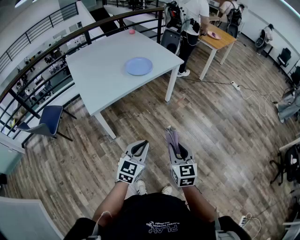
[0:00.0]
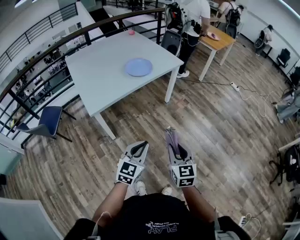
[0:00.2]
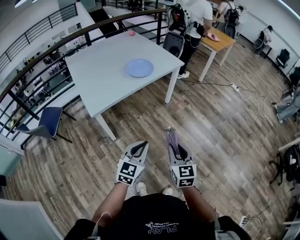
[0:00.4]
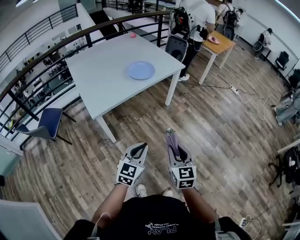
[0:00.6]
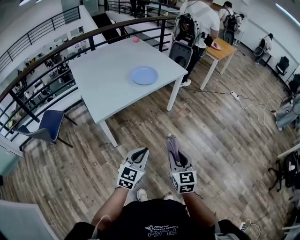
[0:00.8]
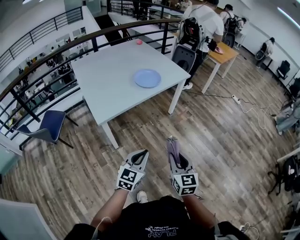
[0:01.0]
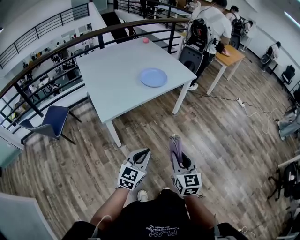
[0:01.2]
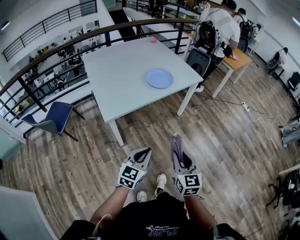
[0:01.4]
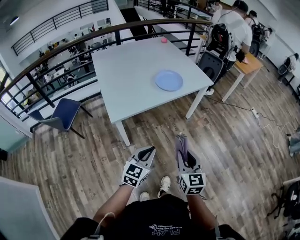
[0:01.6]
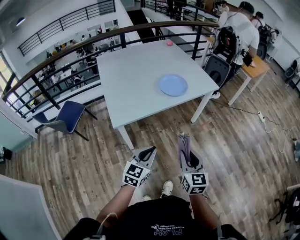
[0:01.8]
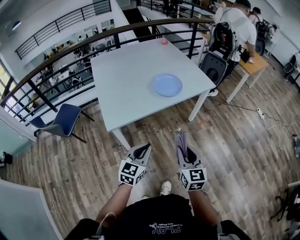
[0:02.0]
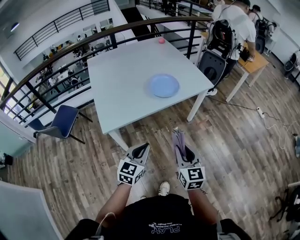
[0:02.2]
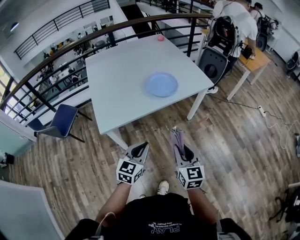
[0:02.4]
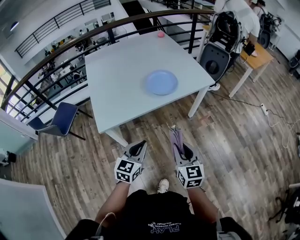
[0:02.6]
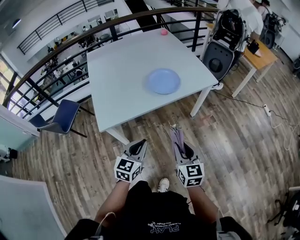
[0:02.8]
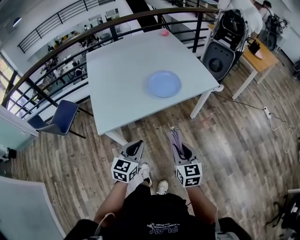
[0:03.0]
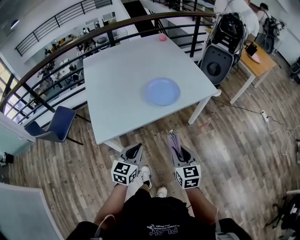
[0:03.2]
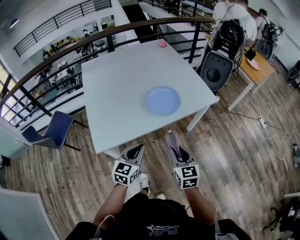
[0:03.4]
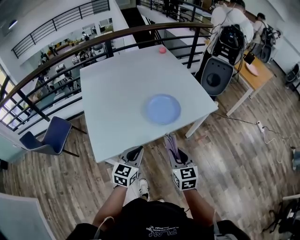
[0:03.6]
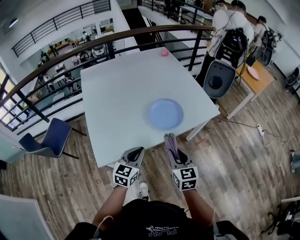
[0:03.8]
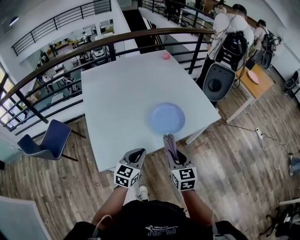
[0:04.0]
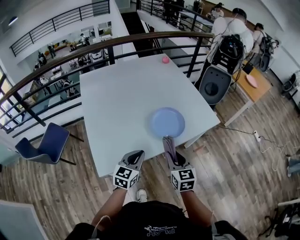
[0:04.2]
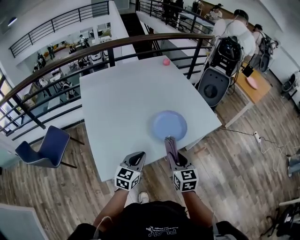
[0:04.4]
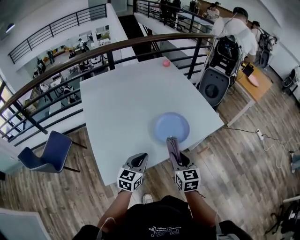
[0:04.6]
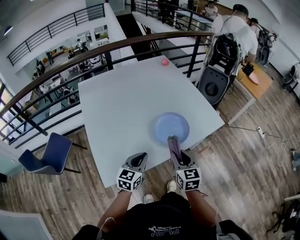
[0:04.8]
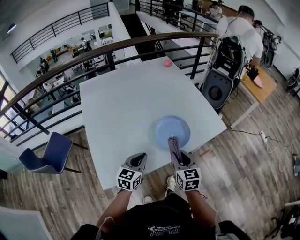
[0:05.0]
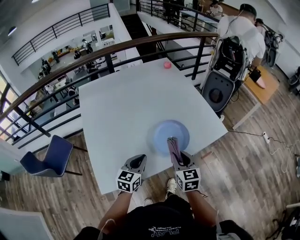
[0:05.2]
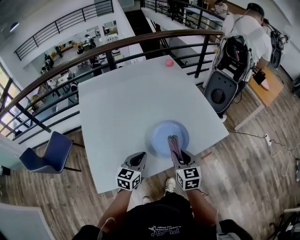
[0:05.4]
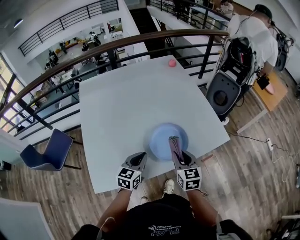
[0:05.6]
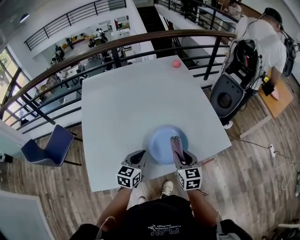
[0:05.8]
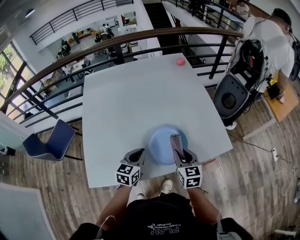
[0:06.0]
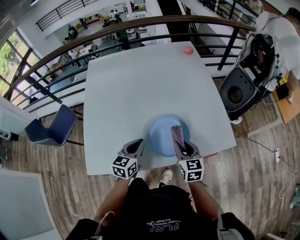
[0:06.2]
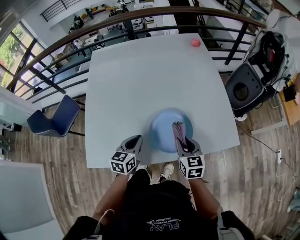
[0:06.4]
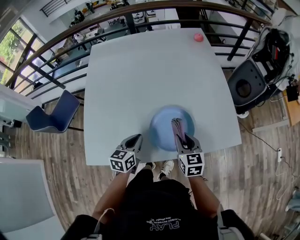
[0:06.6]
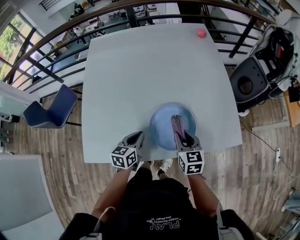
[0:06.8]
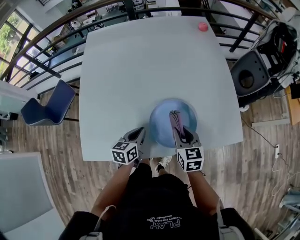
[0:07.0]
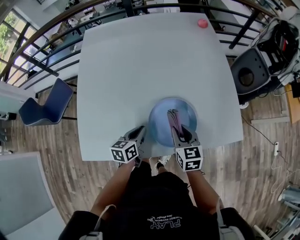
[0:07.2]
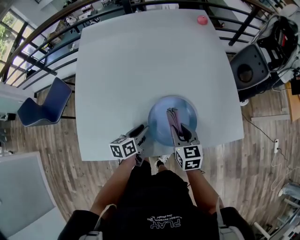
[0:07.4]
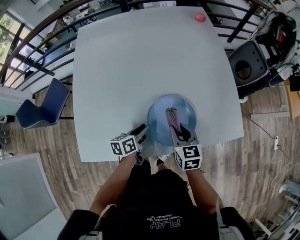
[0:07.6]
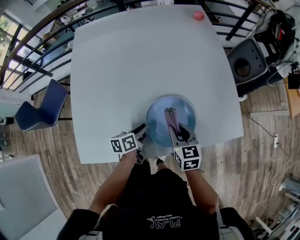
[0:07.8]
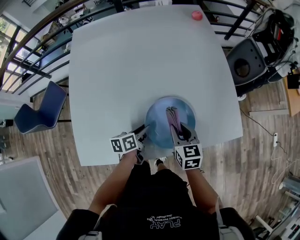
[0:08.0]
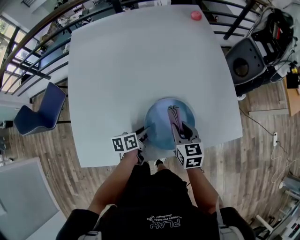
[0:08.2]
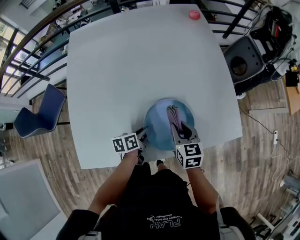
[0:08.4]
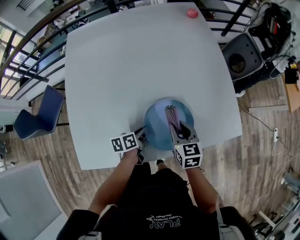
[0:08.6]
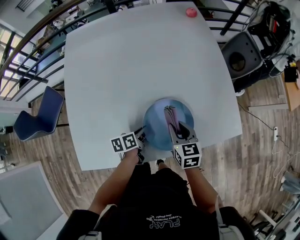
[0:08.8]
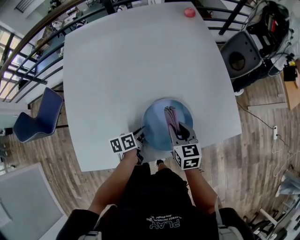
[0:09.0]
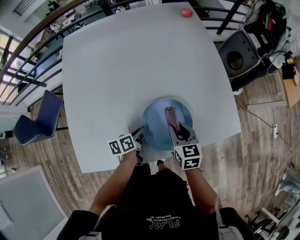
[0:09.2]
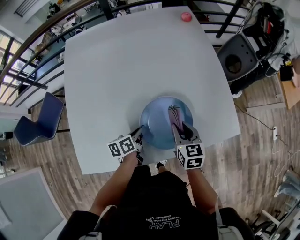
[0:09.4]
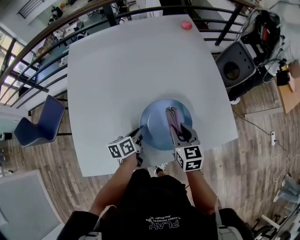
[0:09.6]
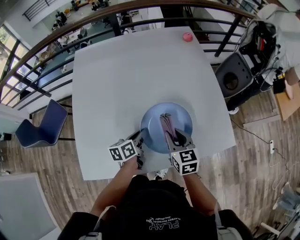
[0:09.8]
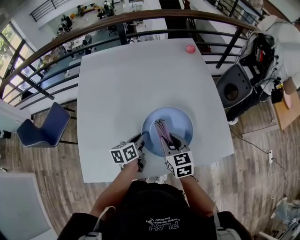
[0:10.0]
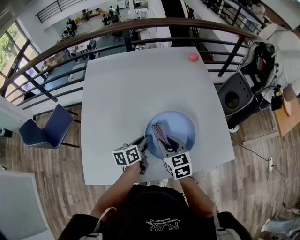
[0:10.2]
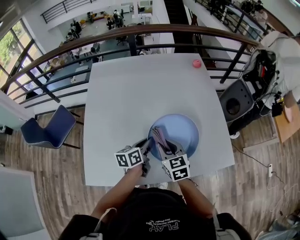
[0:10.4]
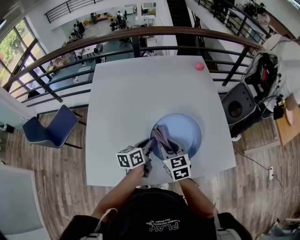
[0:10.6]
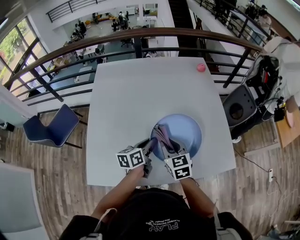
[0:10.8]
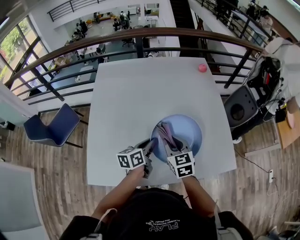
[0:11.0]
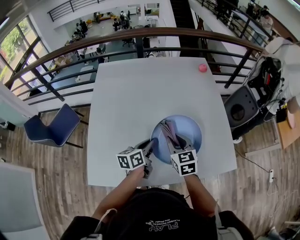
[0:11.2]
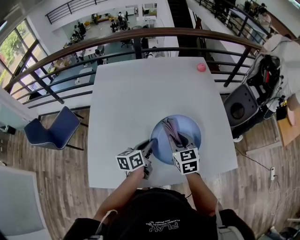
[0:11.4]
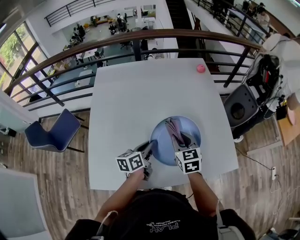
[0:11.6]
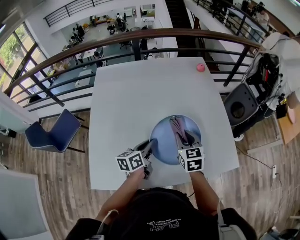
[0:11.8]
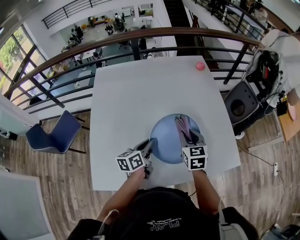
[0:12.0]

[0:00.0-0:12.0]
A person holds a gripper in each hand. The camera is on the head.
0:00.0 to 0:01.6: Both grippers travel together to the left and forward, some 15 cm.
0:01.6 to 0:03.0: Both grippers travel together forward, roughly 15 cm.
0:03.0 to 0:04.4: The two grippers go approximately 25 cm forward and to the left.
0:04.4 to 0:06.0: The left gripper shifts approximately 15 cm forward. Meanwhile the right gripper shifts some 20 cm forward and to the right.
0:06.0 to 0:07.6: The left gripper goes roughly 15 cm downward, turns by approximately 40 degrees, and opens up; the right gripper shifts approximately 5 cm downward.
0:07.6 to 0:09.0: The left gripper closes.
0:09.0 to 0:10.4: The left gripper moves upward, about 15 cm, and turns by about 30 degrees, while the right gripper goes some 15 cm to the left and upward.
0:10.4 to 0:12.0: The right gripper is displaced forward and to the right by roughly 10 cm.

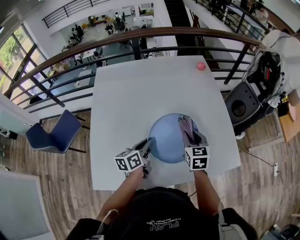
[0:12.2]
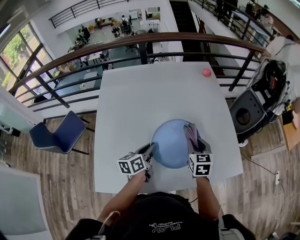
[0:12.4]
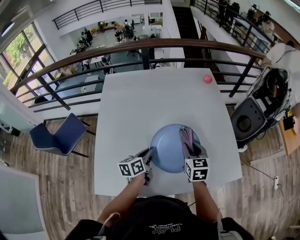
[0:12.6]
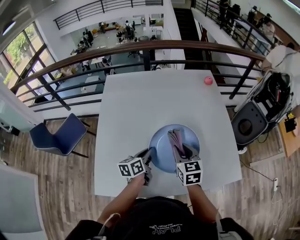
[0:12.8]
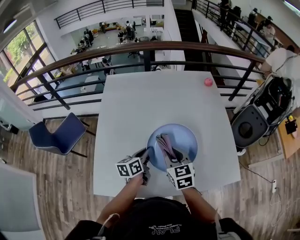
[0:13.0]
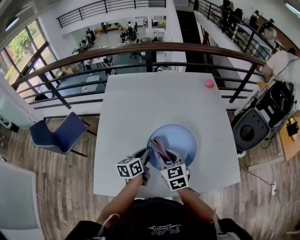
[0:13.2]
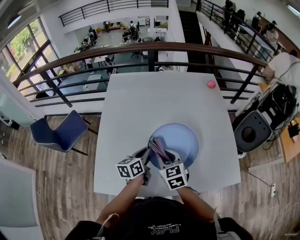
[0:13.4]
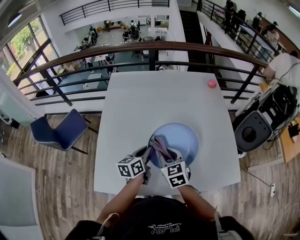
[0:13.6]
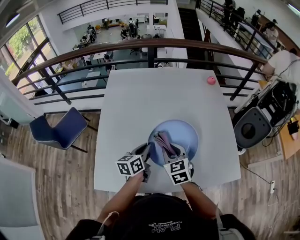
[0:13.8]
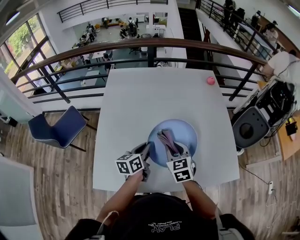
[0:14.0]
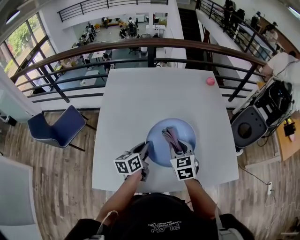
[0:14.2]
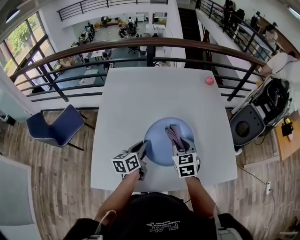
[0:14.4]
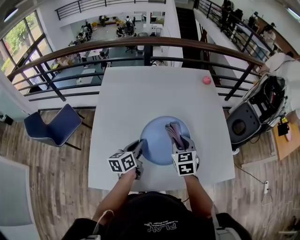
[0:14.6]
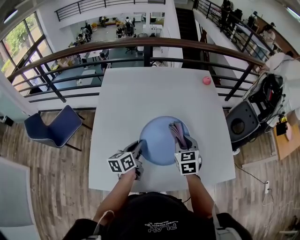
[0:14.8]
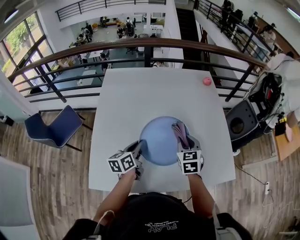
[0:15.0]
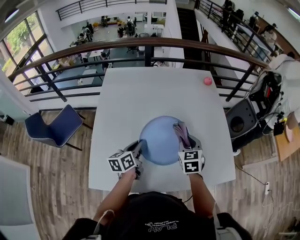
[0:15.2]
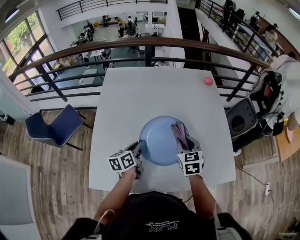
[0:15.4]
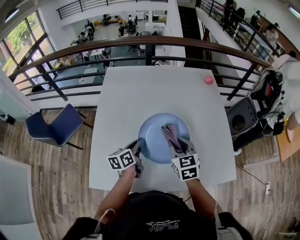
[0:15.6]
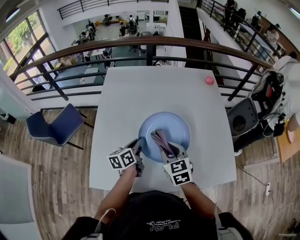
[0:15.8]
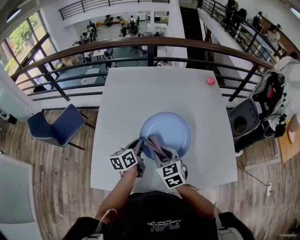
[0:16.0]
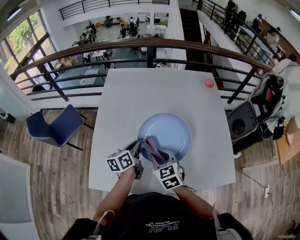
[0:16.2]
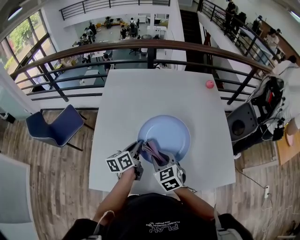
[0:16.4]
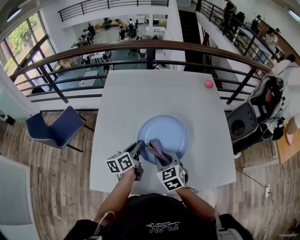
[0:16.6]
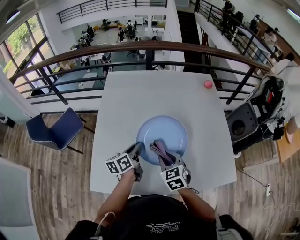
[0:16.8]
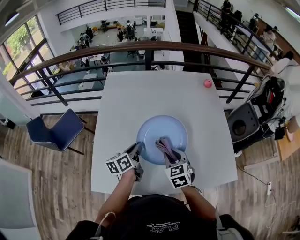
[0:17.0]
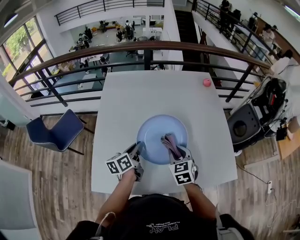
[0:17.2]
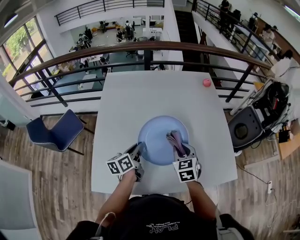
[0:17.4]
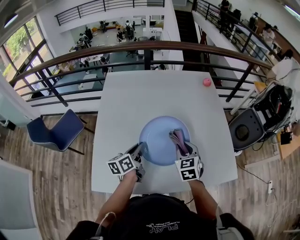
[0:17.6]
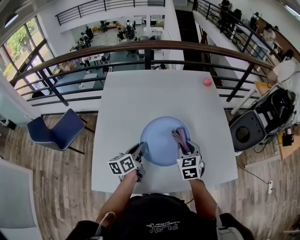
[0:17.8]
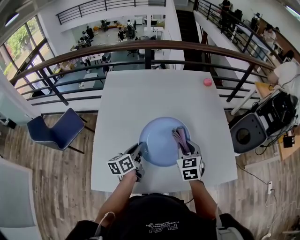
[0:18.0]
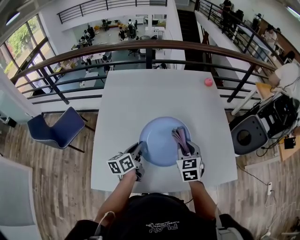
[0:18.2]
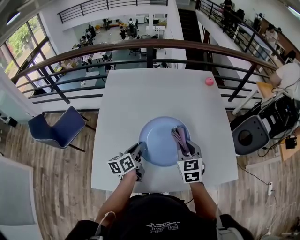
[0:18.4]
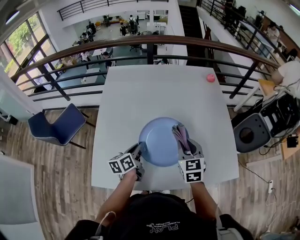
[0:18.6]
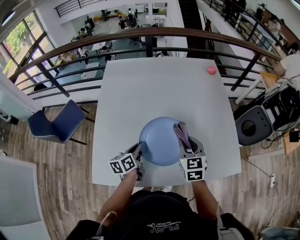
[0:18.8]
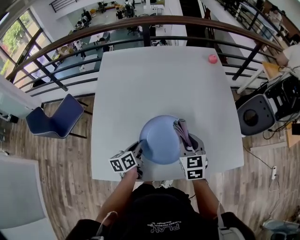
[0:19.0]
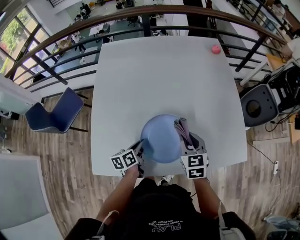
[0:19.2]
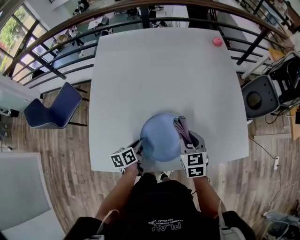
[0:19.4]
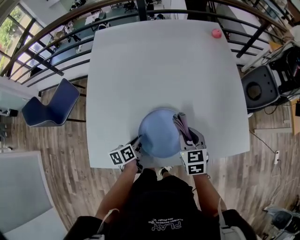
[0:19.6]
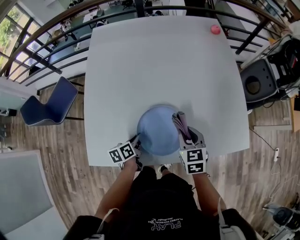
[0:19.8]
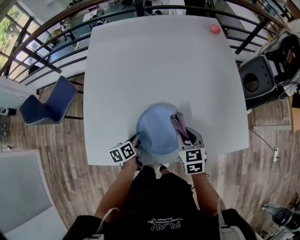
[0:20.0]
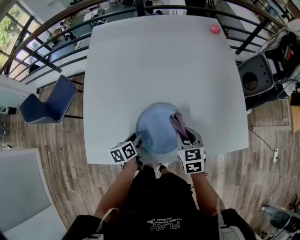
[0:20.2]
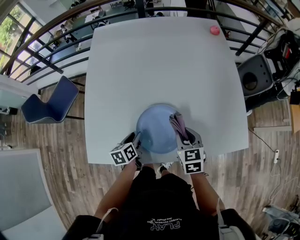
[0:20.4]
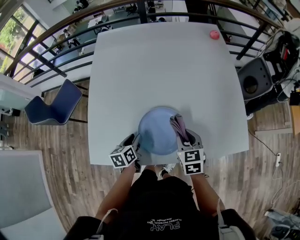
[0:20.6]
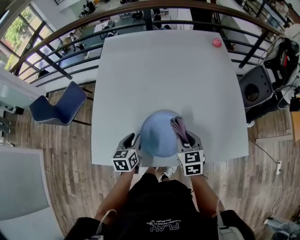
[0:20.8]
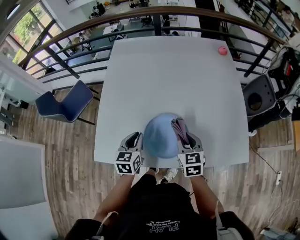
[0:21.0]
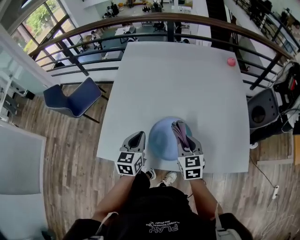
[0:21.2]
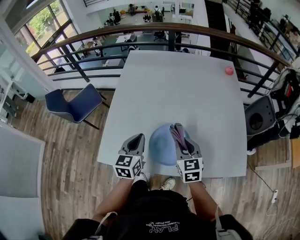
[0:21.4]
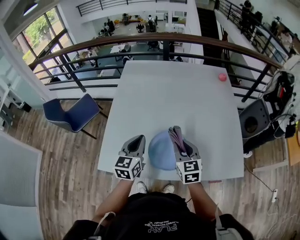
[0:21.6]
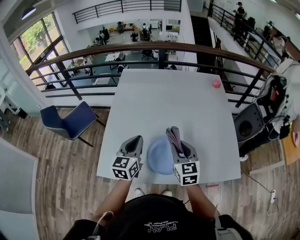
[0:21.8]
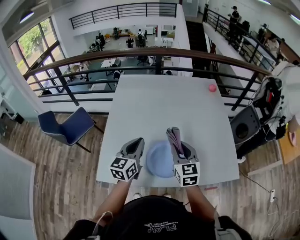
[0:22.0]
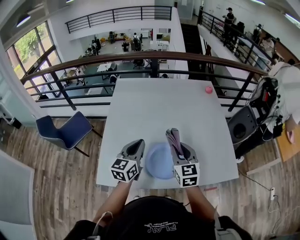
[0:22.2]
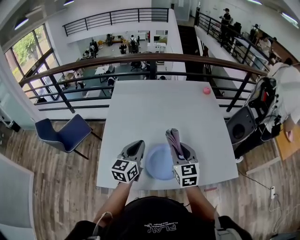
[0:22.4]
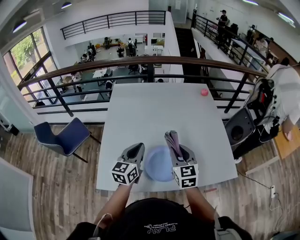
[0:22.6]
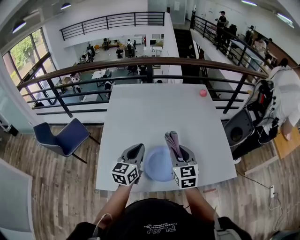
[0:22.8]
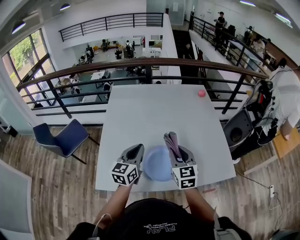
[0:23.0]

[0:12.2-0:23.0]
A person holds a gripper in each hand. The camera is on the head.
0:12.2 to 0:13.8: The right gripper goes about 15 cm to the left, and turns by some 20 degrees; the left gripper ends up roughly 5 cm from where it was.
0:13.8 to 0:15.2: The right gripper is displaced to the right by approximately 10 cm.
0:15.2 to 0:16.8: The right gripper heads to the left and backward, covering about 15 cm.
0:16.8 to 0:18.4: The right gripper moves to the right, about 10 cm.
0:18.4 to 0:20.0: The two grippers go roughly 15 cm downward. The left gripper changes its angle by about 30 degrees.
0:20.0 to 0:21.4: The left gripper shifts about 20 cm upward, turns by about 50 degrees, and opens, then closes once more. The right gripper is displaced upward by some 10 cm.
0:21.4 to 0:23.0: Both grippers travel together upward, about 10 cm. The left gripper swivels roughly 20 degrees.

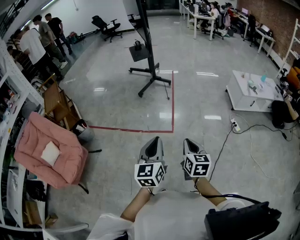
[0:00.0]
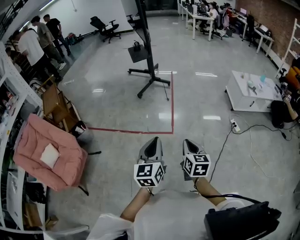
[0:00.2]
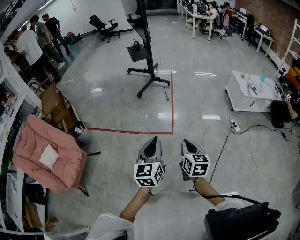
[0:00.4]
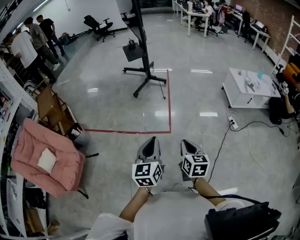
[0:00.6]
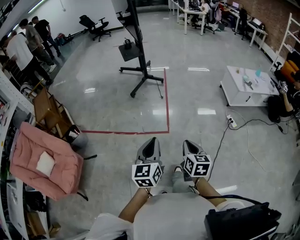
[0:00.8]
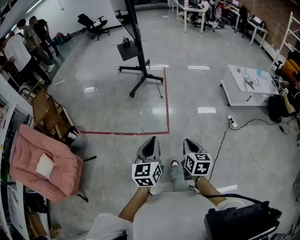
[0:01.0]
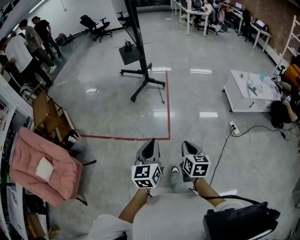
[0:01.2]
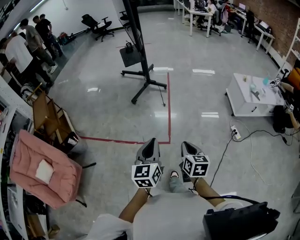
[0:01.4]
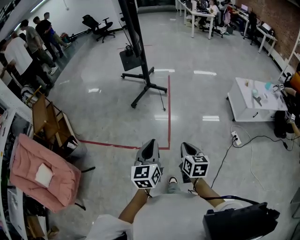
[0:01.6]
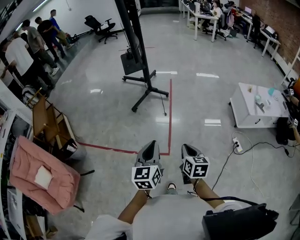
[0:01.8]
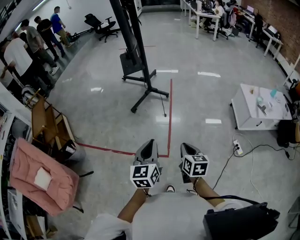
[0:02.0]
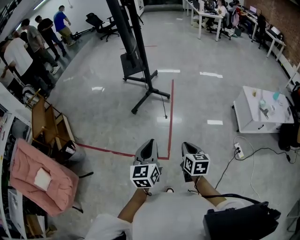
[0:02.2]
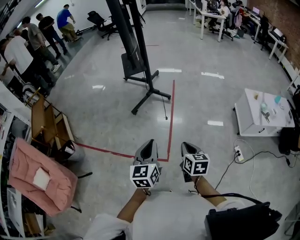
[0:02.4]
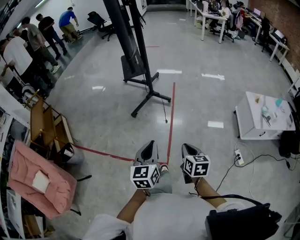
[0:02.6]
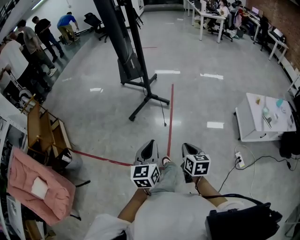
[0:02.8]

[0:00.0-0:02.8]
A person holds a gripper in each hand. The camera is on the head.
0:00.0 to 0:01.4: The two grippers go roughly 20 cm forward.
0:01.4 to 0:02.8: The two grippers go approximately 30 cm forward.
